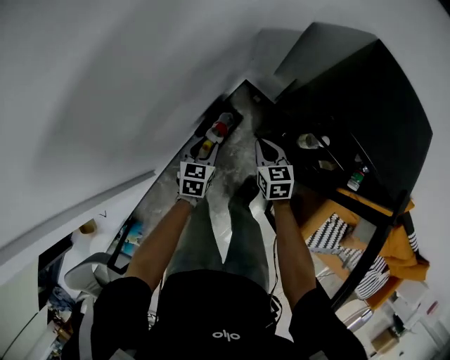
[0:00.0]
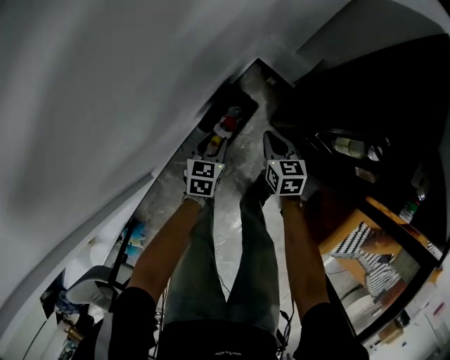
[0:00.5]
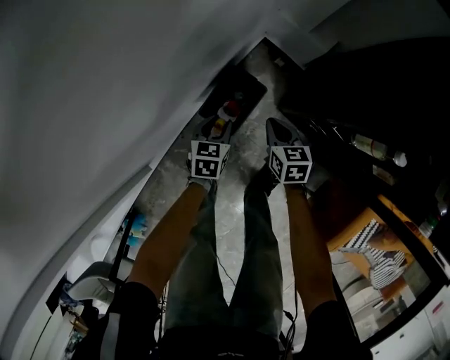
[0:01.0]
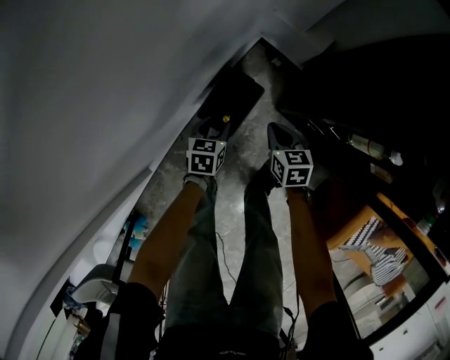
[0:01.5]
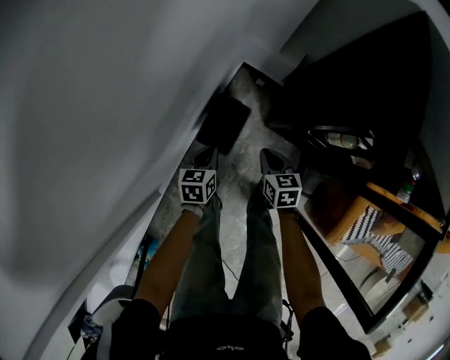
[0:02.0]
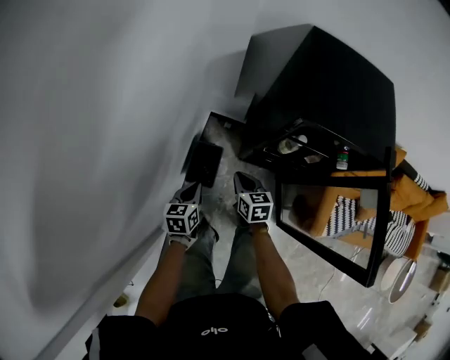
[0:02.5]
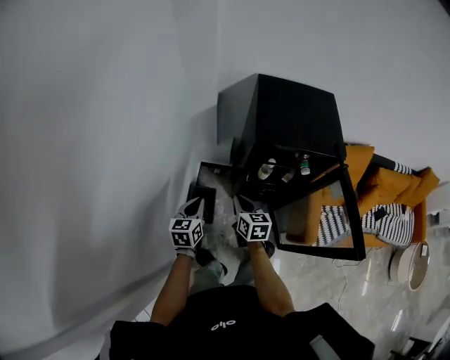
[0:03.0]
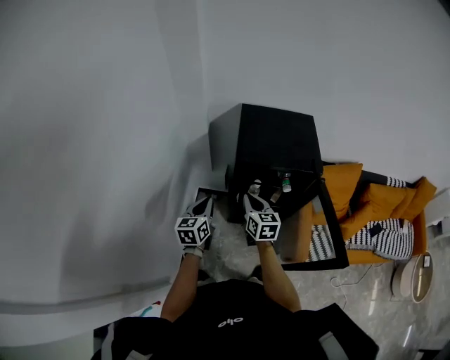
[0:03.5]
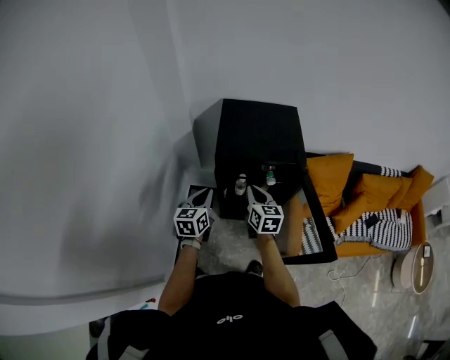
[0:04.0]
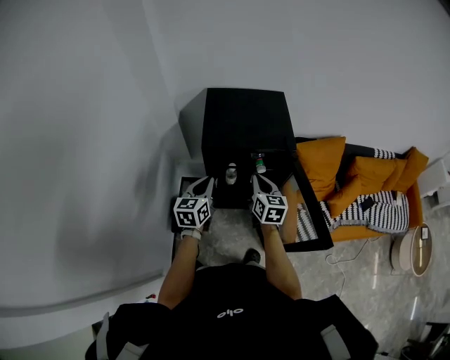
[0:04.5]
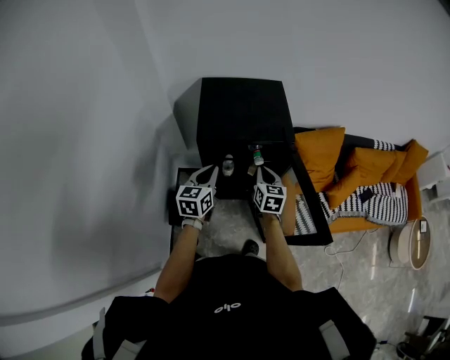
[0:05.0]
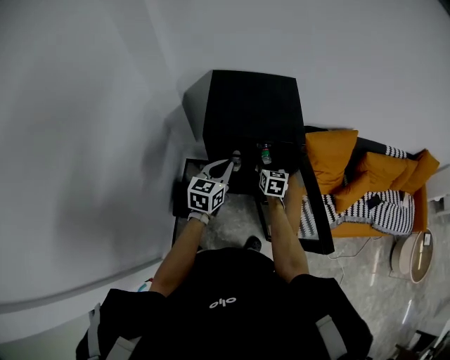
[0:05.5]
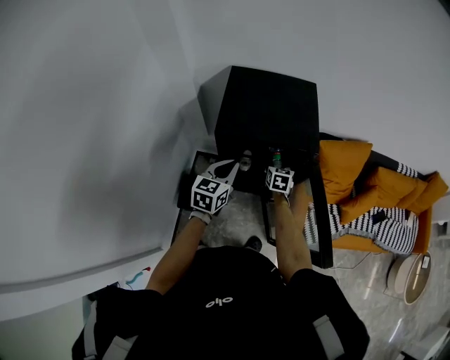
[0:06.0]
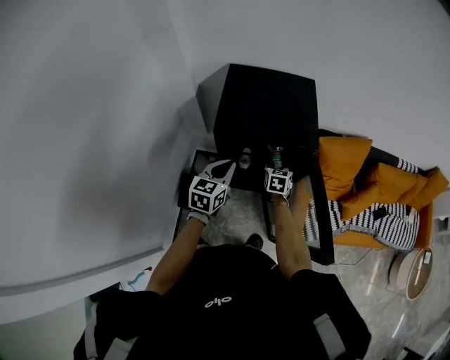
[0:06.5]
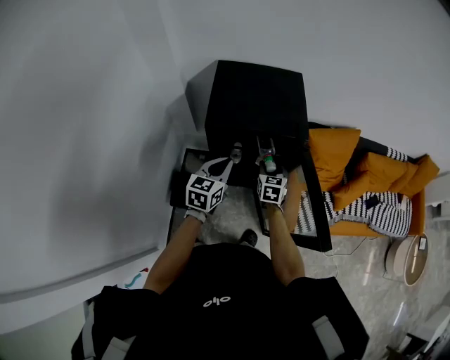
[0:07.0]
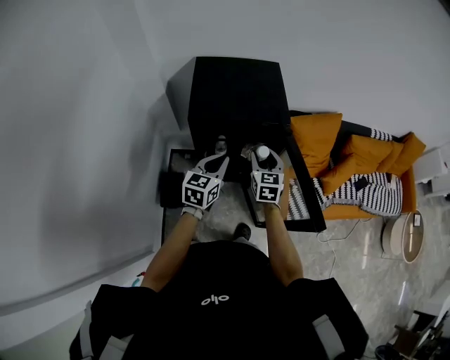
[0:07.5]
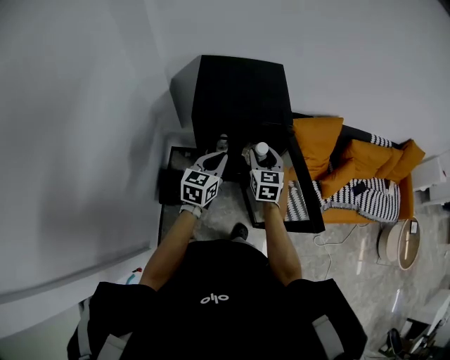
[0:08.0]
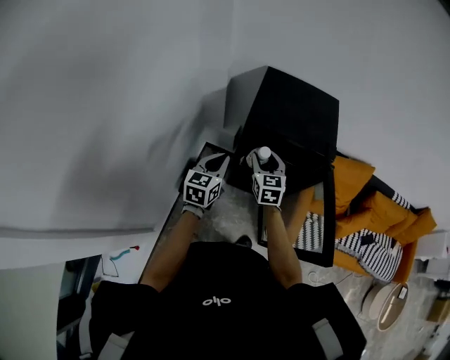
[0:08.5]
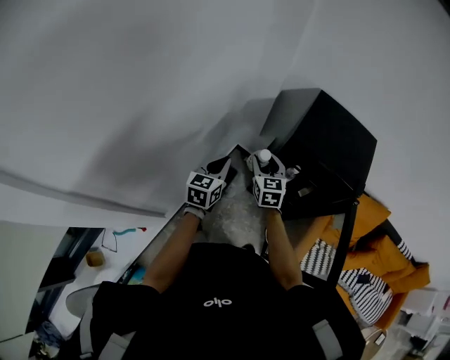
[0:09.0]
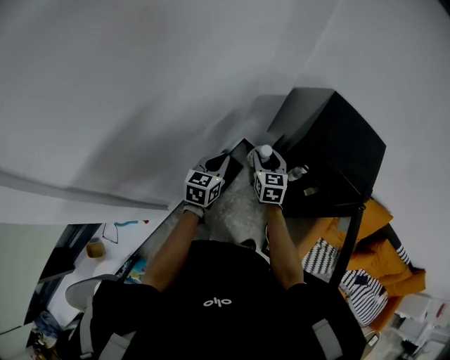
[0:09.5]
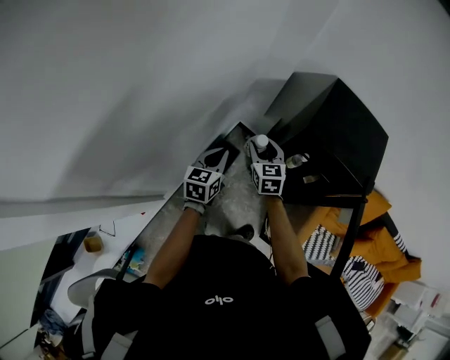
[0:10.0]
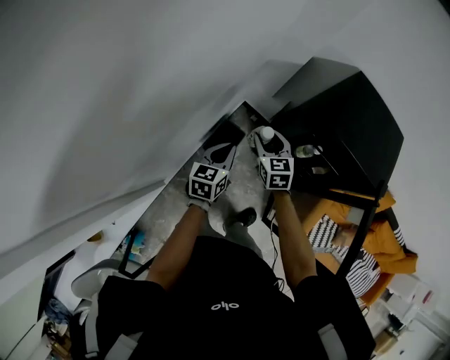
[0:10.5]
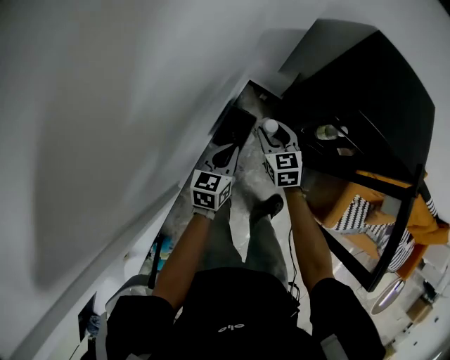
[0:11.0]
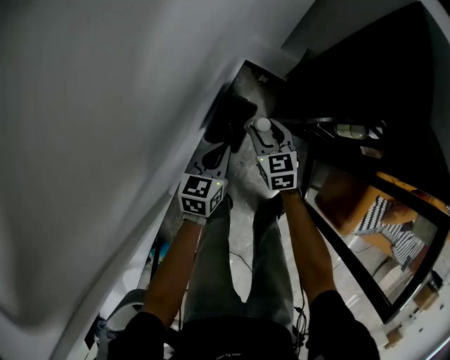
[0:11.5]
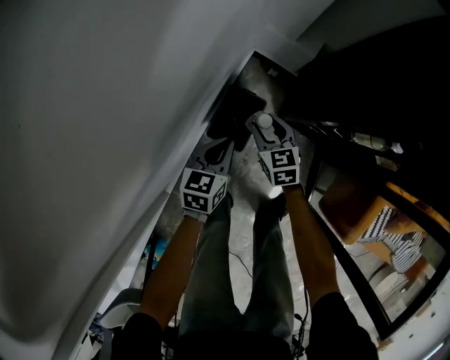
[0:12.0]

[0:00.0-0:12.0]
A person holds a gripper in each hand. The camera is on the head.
0:00.0 to 0:02.0: Both grippers travel together downward, some 20 cm. The left gripper closes.
0:02.0 to 0:04.0: Both grippers travel together upward, approximately 50 cm. The right gripper turns by some 40 degrees; the left gripper swivels some 40 degrees.
0:04.0 to 0:06.0: The right gripper is displaced downward, forward and to the right by about 25 cm, rotates some 20 degrees, and opens its fingers; the left gripper is displaced to the right and forward by about 10 cm.
0:06.0 to 0:08.0: The left gripper changes place by some 5 cm. The right gripper travels upward and backward by about 20 cm.
0:08.0 to 0:10.0: The left gripper changes place by approximately 30 cm, and rotates approximately 40 degrees. Meanwhile the right gripper changes place by roughly 35 cm, and changes its angle by about 40 degrees.
0:10.0 to 0:12.0: Both grippers travel together downward, some 40 cm.

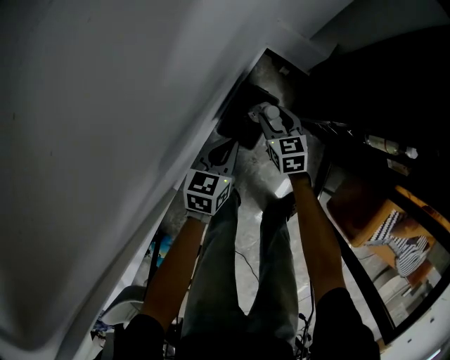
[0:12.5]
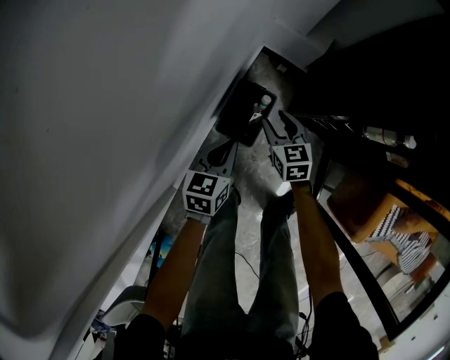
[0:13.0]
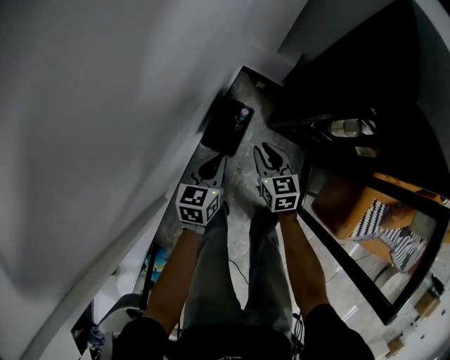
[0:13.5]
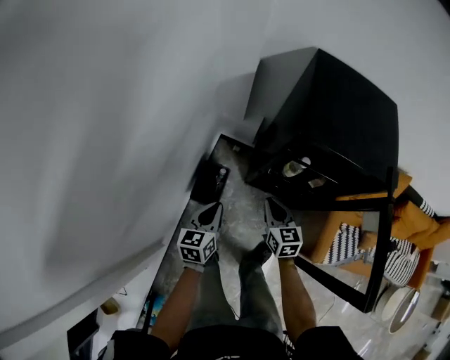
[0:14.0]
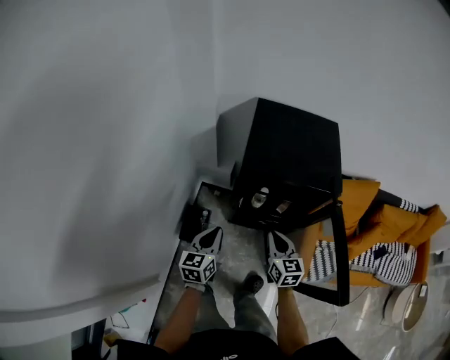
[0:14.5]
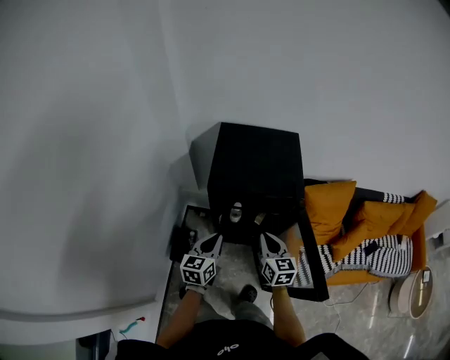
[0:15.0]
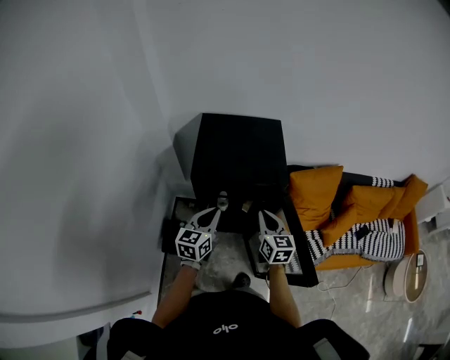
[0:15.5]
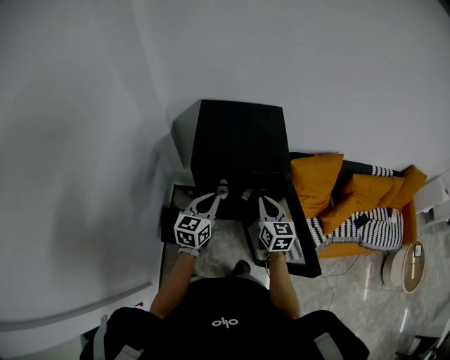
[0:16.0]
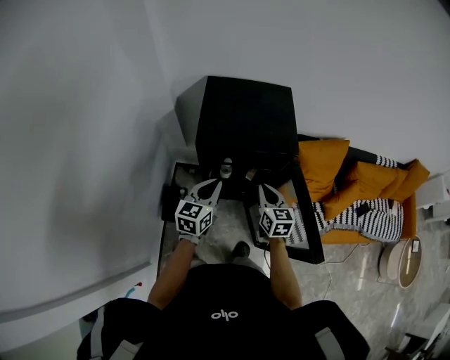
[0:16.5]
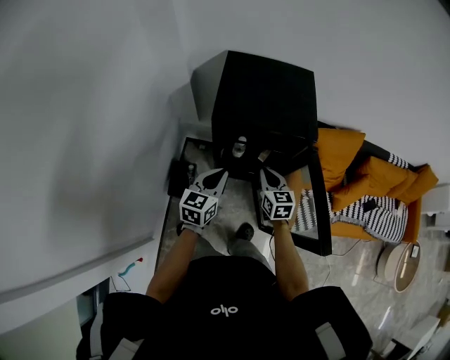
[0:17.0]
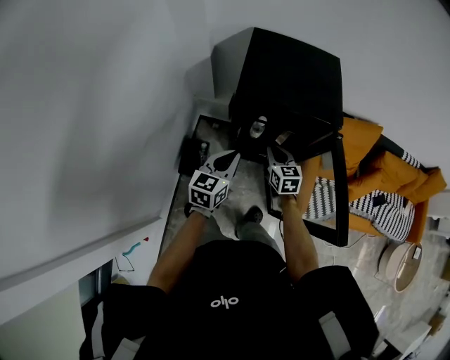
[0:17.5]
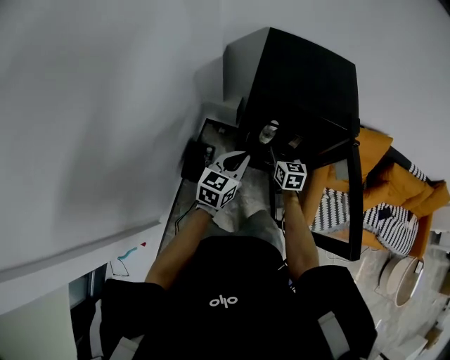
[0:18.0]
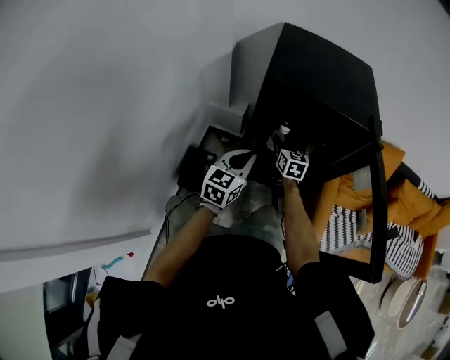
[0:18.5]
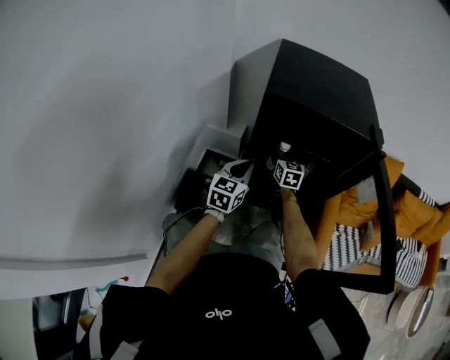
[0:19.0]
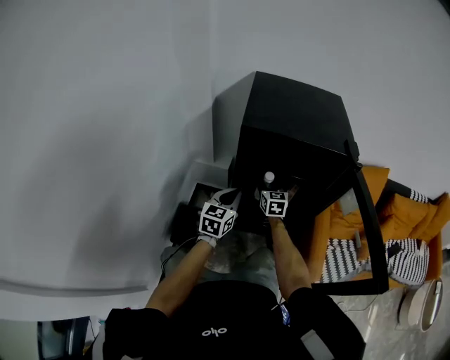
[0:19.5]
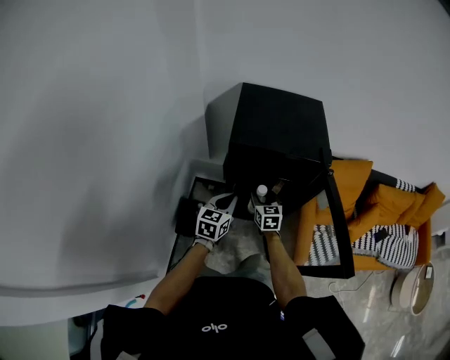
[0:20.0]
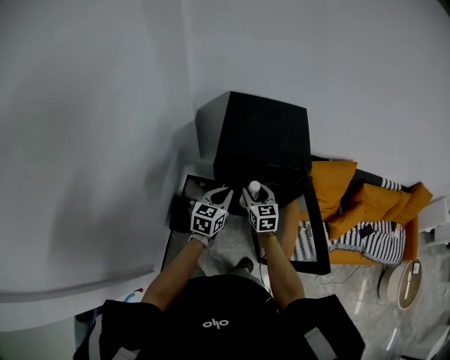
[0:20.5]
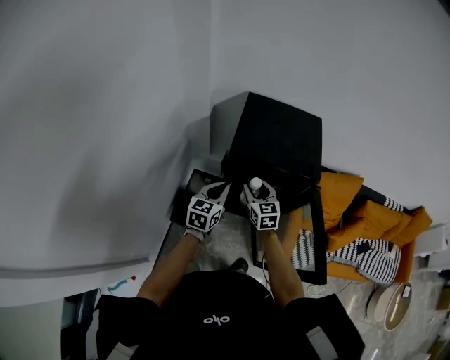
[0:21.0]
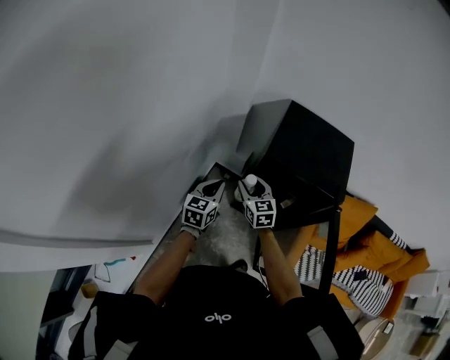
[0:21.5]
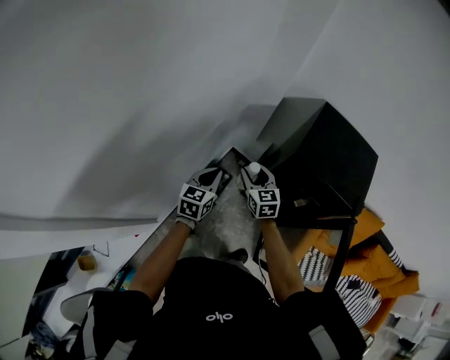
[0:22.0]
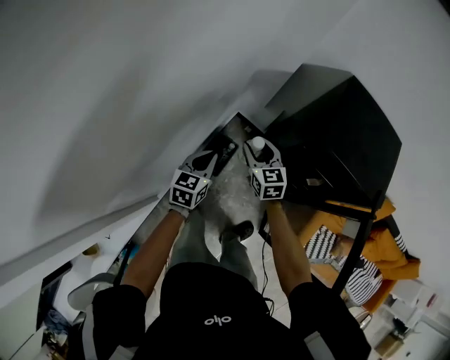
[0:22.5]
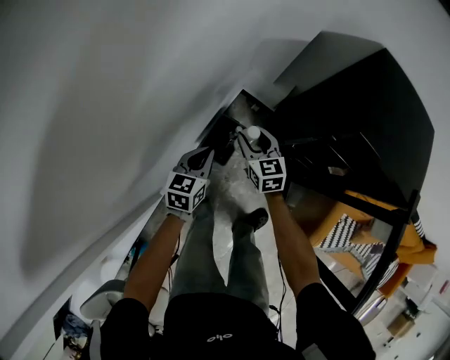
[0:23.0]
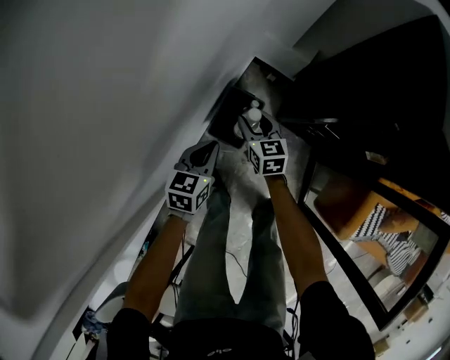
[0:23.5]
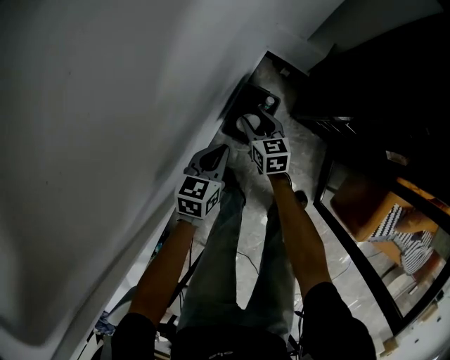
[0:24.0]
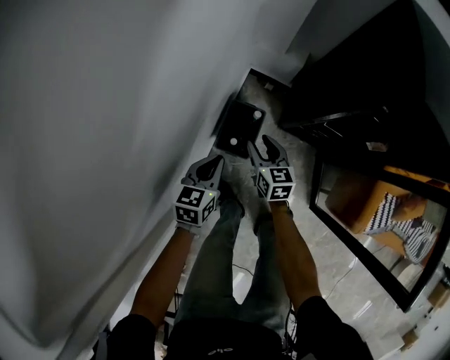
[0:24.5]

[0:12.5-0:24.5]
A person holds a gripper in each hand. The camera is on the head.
0:12.5 to 0:14.5: The right gripper goes roughly 60 cm upward, to the right and backward, swivels roughly 30 degrees, and closes its fingers. Meanwhile the left gripper heads upward and to the right, covering roughly 40 cm.
0:14.5 to 0:16.5: The right gripper moves to the right, some 10 cm, while the left gripper shifts some 15 cm to the right, upward and forward.
0:16.5 to 0:18.5: The right gripper shifts roughly 30 cm downward, forward and to the left, and opens its fingers, while the left gripper travels downward by some 20 cm.
0:18.5 to 0:20.5: The right gripper is displaced upward and backward by about 25 cm; the left gripper travels upward by about 15 cm.
0:20.5 to 0:22.5: The left gripper changes place by some 30 cm, and swivels some 30 degrees; the right gripper shifts by about 30 cm, and swivels some 30 degrees.
0:22.5 to 0:24.5: The grippers both shift downward by about 25 cm. The right gripper swivels some 20 degrees.

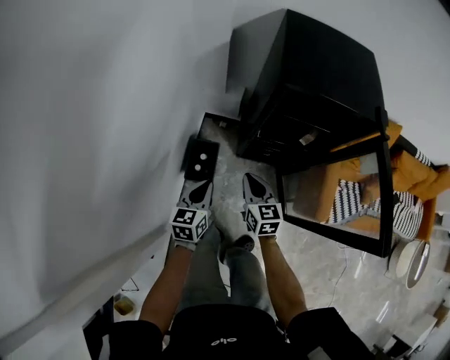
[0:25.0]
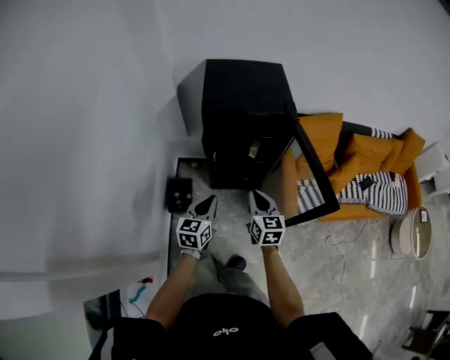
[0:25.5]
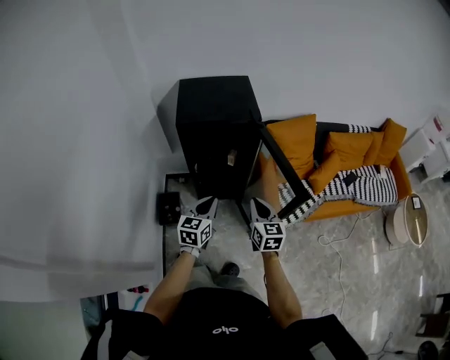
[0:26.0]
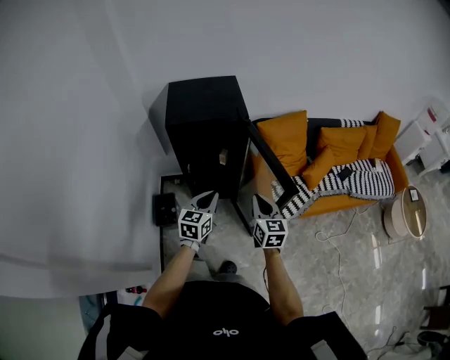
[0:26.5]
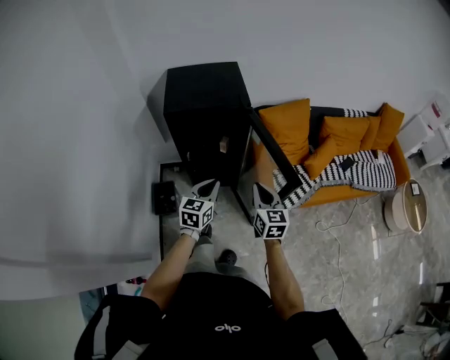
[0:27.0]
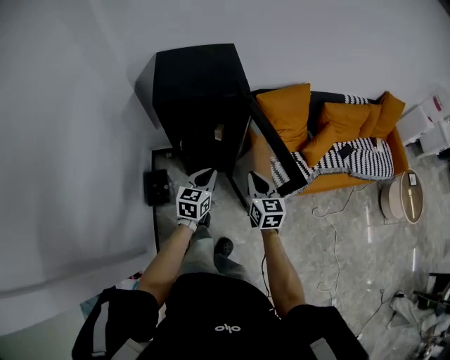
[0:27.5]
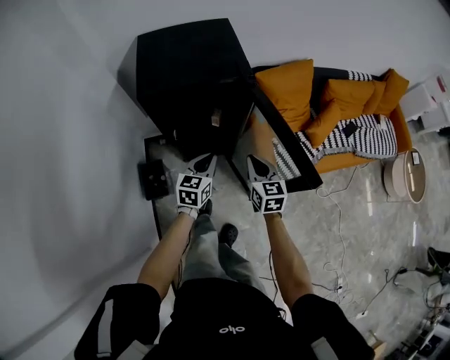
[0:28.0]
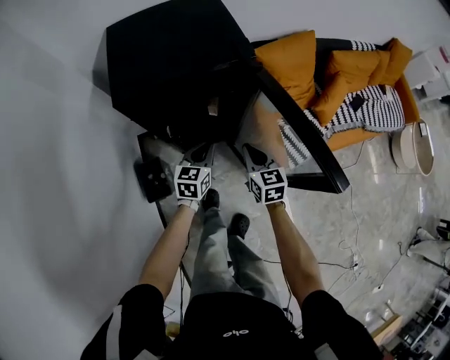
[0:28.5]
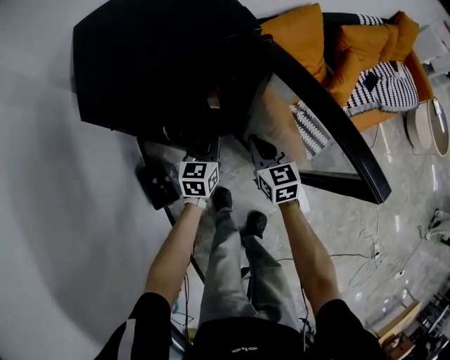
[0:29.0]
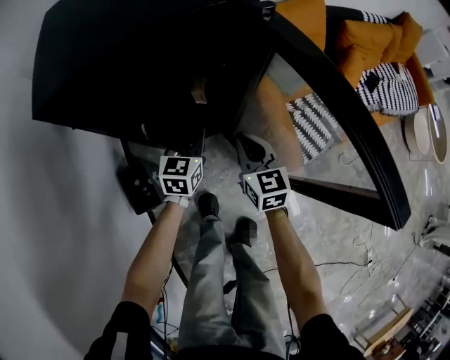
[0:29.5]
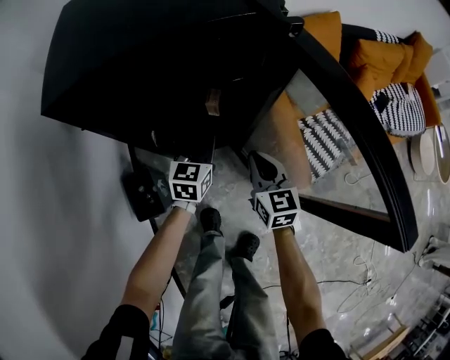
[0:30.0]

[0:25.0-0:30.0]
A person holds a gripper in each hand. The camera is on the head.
0:25.0 to 0:27.5: Both grippers travel together to the right and upward, about 35 cm. The left gripper rotates approximately 30 degrees. The right gripper rotates about 20 degrees.
0:27.5 to 0:30.0: The grippers both shift downward and forward by approximately 35 cm.
